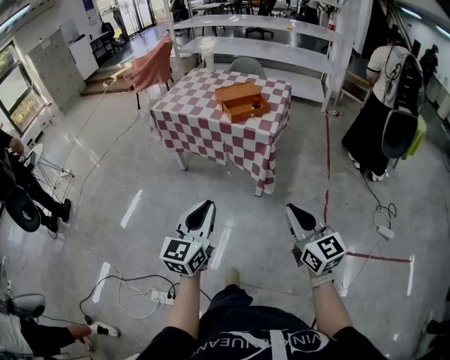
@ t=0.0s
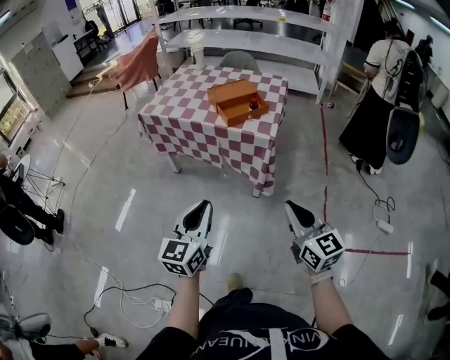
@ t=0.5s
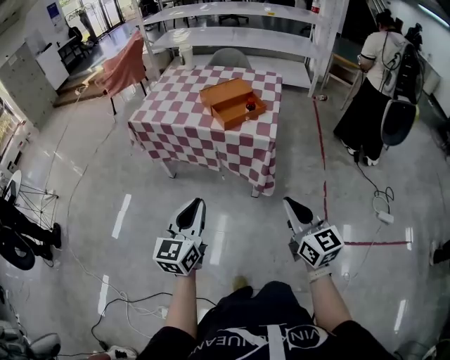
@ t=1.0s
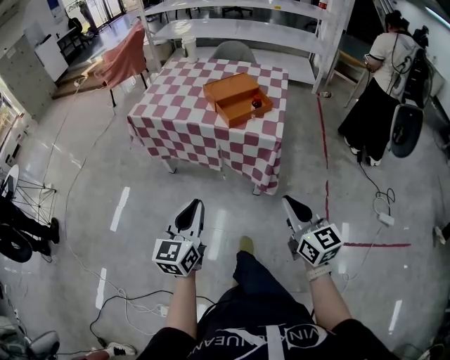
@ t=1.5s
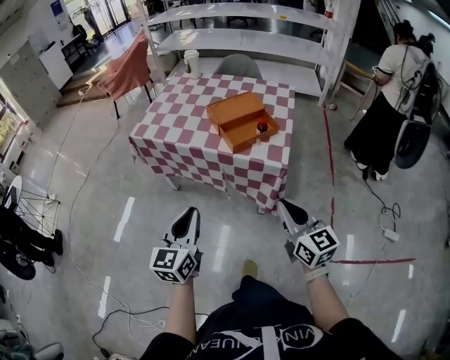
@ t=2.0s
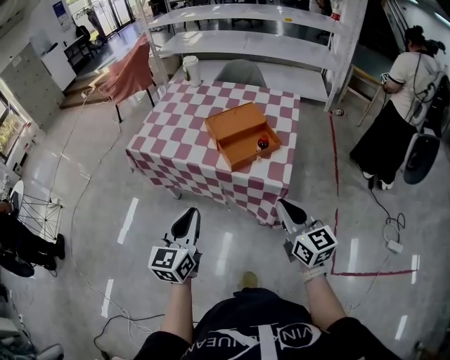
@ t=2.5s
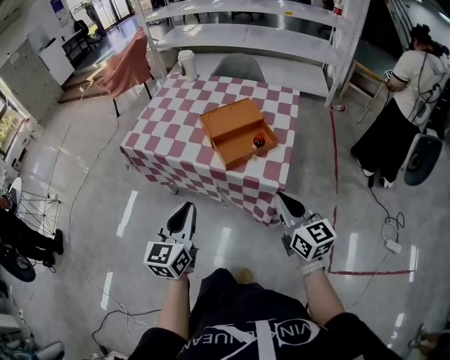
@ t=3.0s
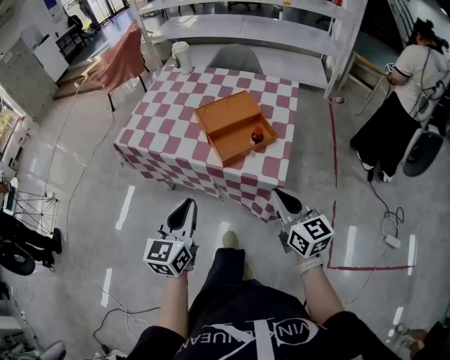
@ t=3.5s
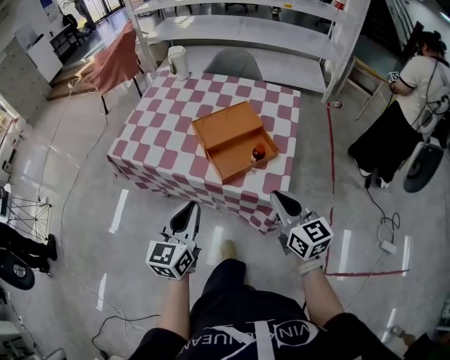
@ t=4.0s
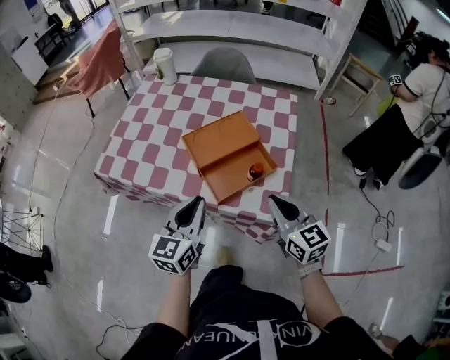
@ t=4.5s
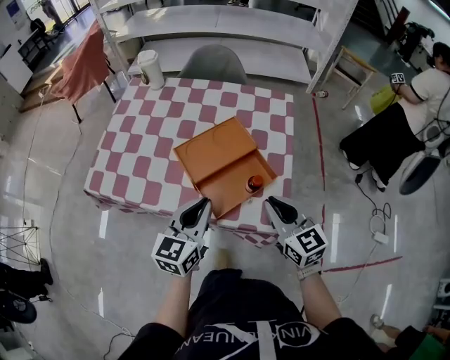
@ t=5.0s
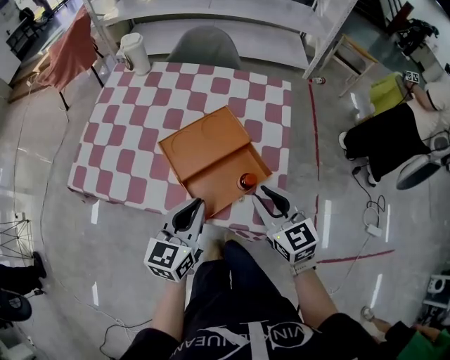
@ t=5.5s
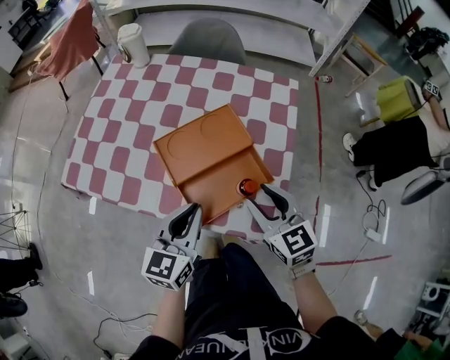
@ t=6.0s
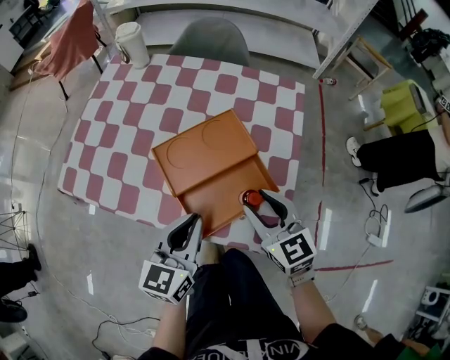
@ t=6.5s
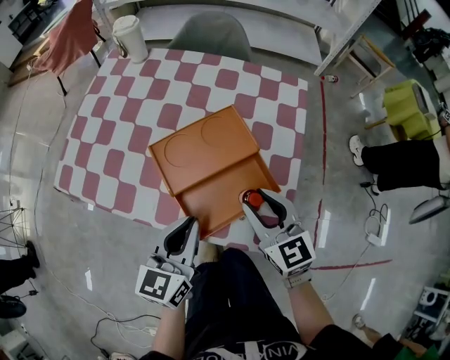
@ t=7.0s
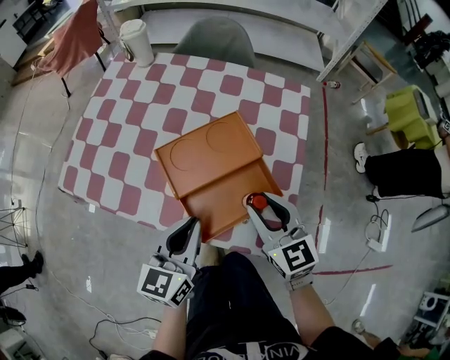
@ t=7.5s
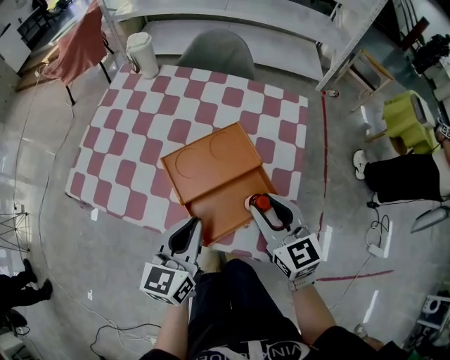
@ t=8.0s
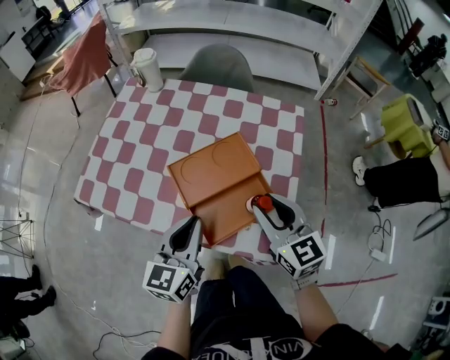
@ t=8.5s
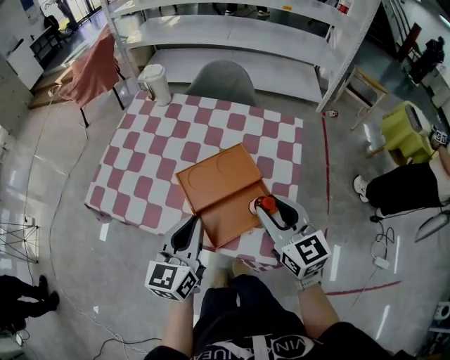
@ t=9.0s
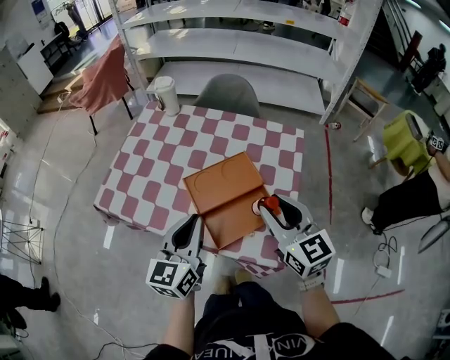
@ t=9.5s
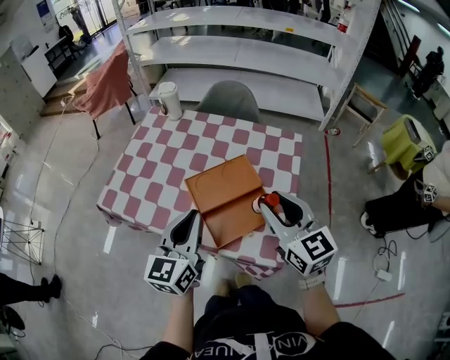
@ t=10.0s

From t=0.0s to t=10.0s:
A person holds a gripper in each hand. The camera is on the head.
From t=0.0s to t=2.0s: Both grippers travel together forward, some 25 cm.
From t=2.0s to t=4.0s: Both grippers move forward, roughly 20 cm.
From t=4.0s to t=6.0s: The left gripper goes roughly 20 cm forward and to the right; the right gripper heads forward and downward, covering about 15 cm, and opens up.
From t=6.0s to t=8.0s: The grippers move only a little.
From t=8.0s to t=10.0s: The two grippers go approximately 10 cm upward.

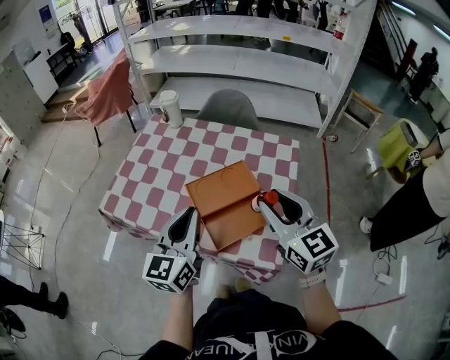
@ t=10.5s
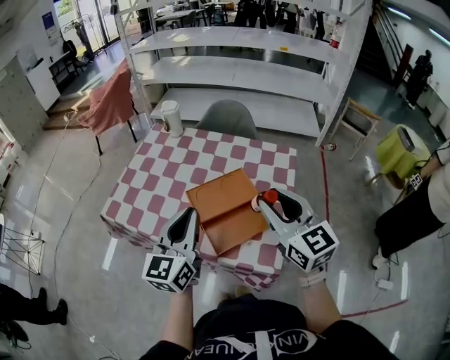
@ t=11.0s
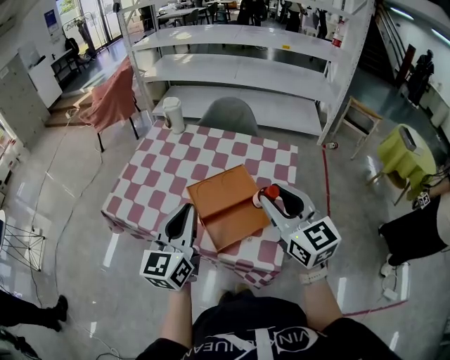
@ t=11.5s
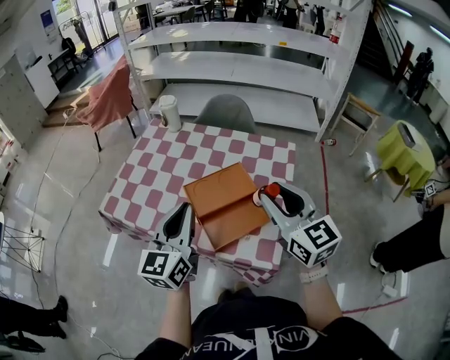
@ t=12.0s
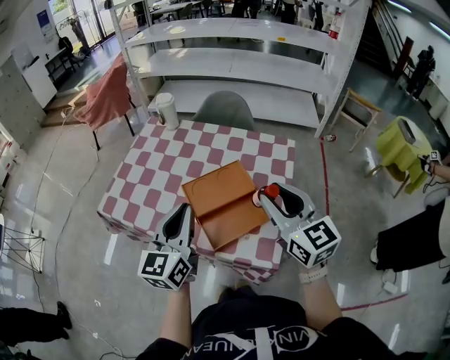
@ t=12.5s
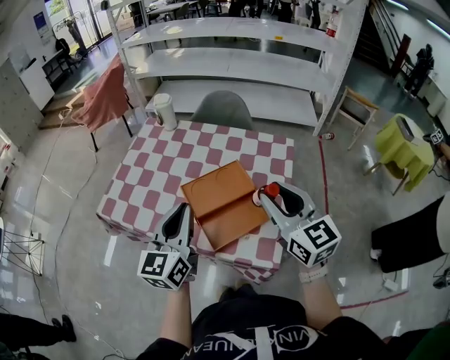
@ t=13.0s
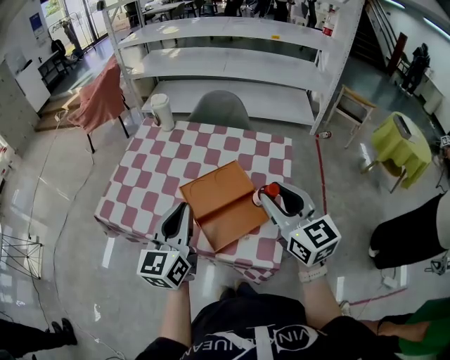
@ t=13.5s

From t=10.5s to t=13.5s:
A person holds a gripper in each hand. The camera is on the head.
From t=10.5s to t=13.5s: There are only small adjustments of the grippers.

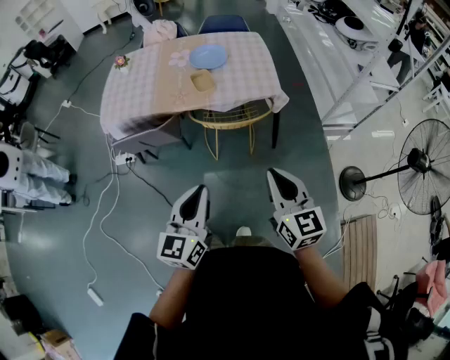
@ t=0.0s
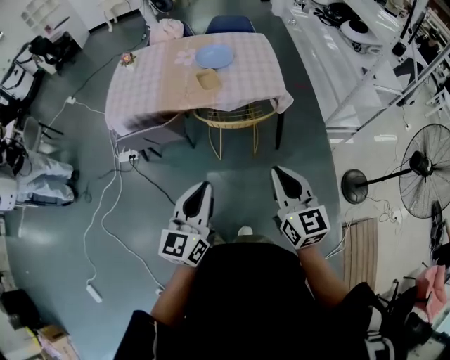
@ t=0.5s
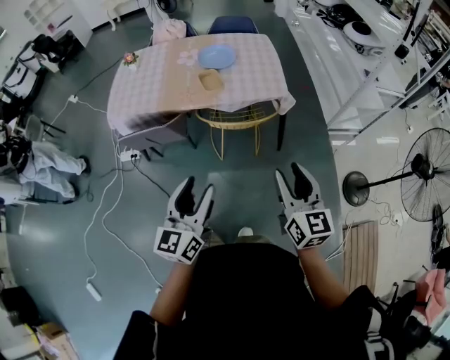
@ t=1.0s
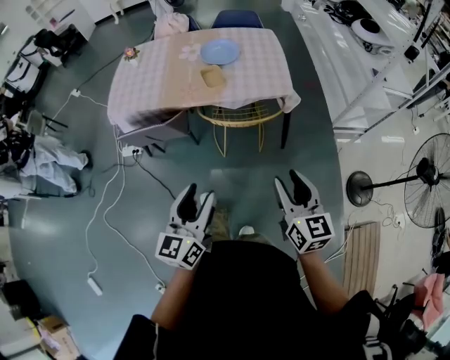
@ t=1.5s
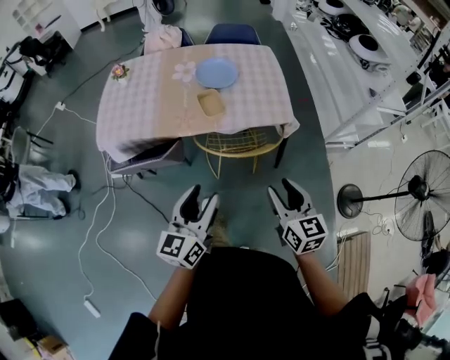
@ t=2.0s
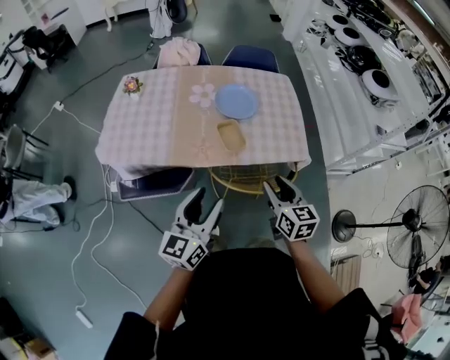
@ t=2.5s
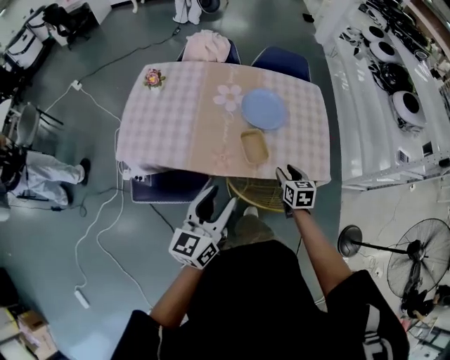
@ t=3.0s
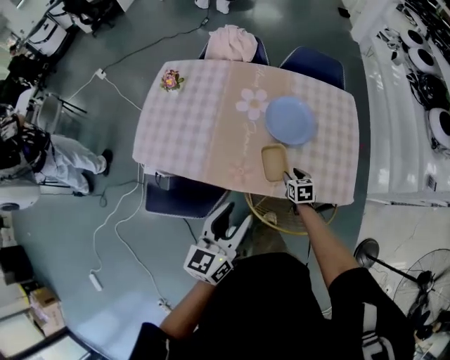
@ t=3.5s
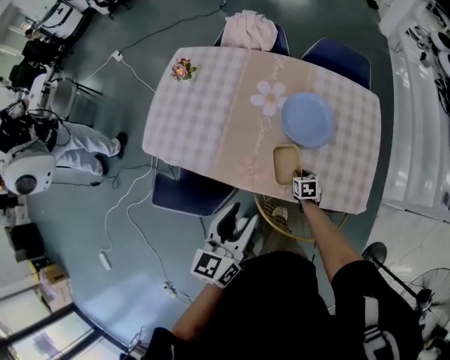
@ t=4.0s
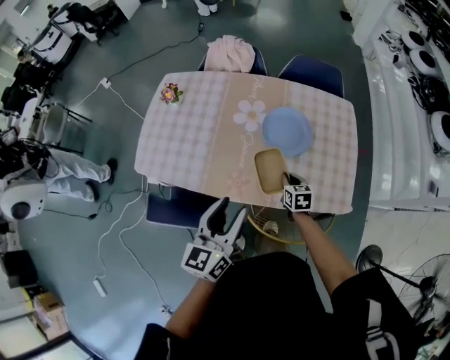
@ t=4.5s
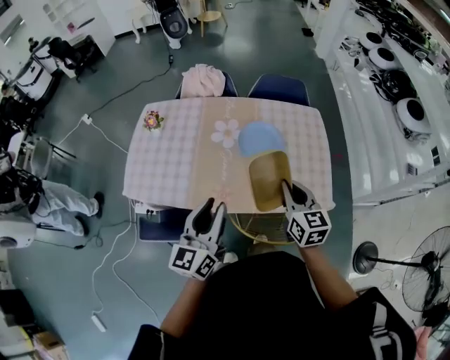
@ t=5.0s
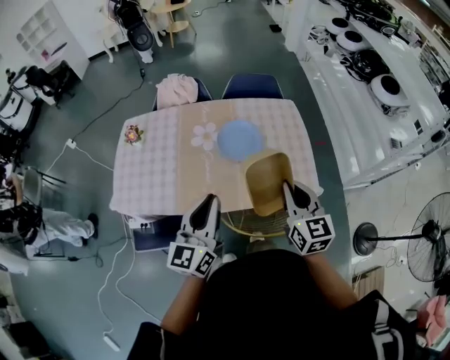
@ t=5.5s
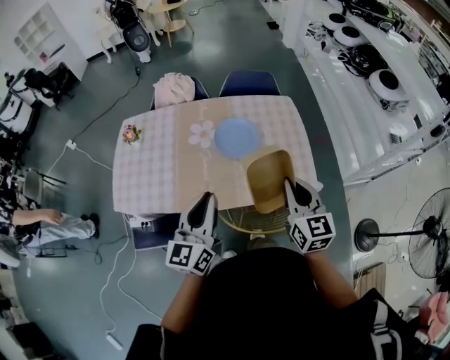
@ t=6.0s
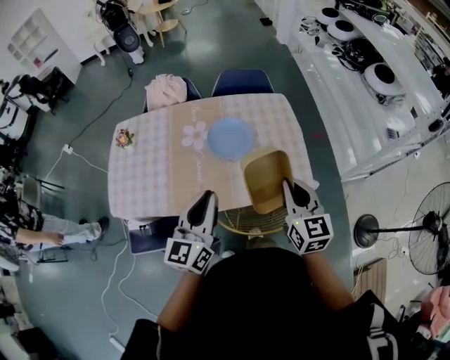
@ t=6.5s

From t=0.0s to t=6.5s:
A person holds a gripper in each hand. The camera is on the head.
From t=0.0s to t=2.0s: The right gripper moves forward and downward, roughly 15 cm, and opens its fingers; the left gripper travels forward by about 15 cm, and opens its fingers.
From t=2.0s to t=4.5s: The left gripper is displaced forward by approximately 35 cm, while the right gripper shifts approximately 50 cm forward and downward, turns by about 30 degrees, and closes its fingers.
From t=4.5s to t=6.5s: The right gripper is displaced upward and backward by roughly 35 cm, and tilts its fingers roughly 30 degrees upward, while the left gripper goes about 10 cm upward and to the right, and closes.

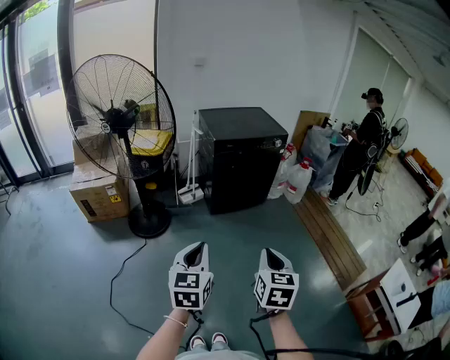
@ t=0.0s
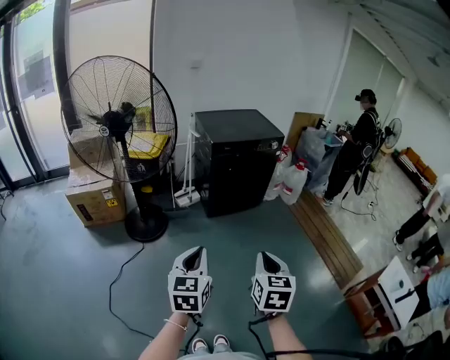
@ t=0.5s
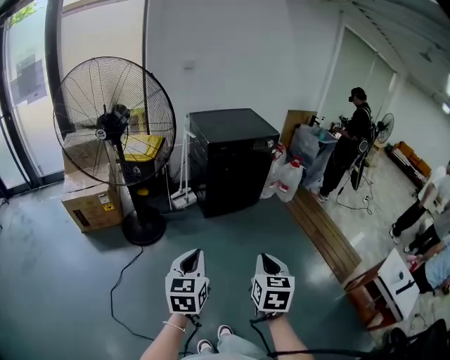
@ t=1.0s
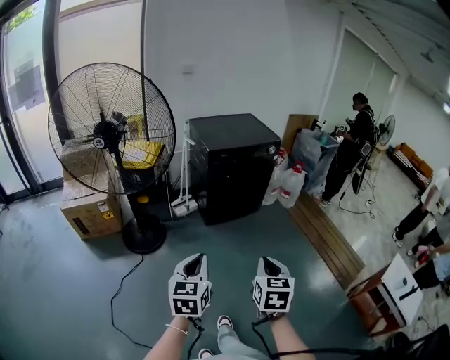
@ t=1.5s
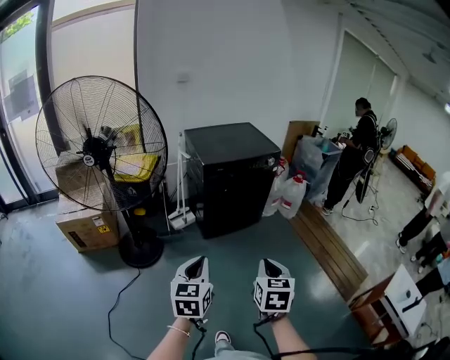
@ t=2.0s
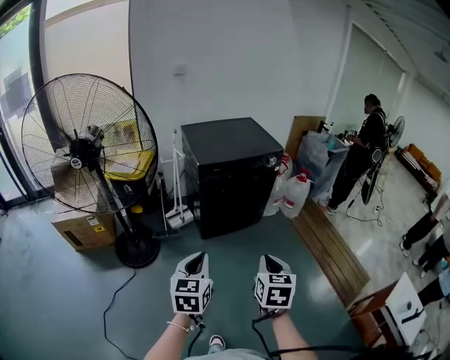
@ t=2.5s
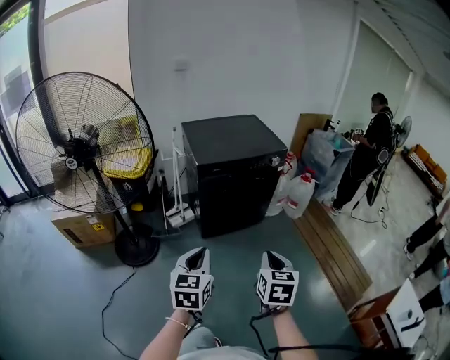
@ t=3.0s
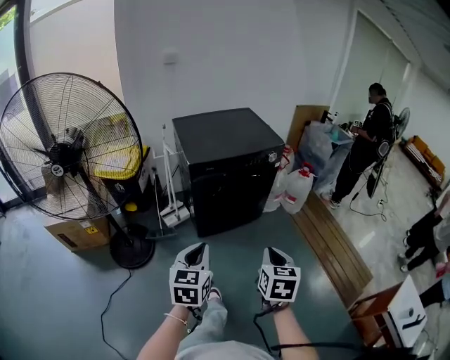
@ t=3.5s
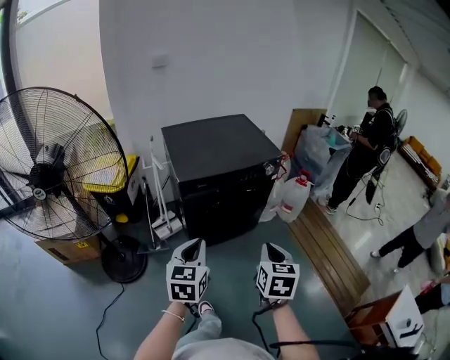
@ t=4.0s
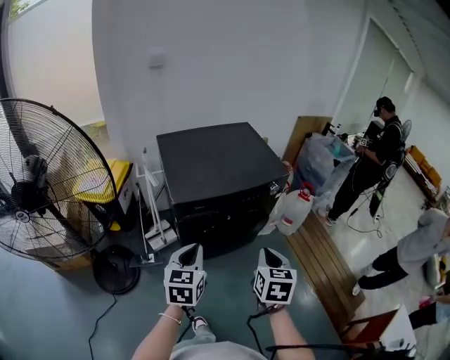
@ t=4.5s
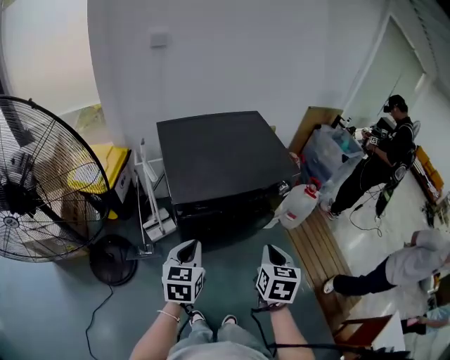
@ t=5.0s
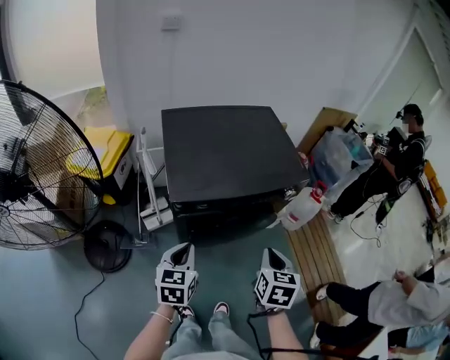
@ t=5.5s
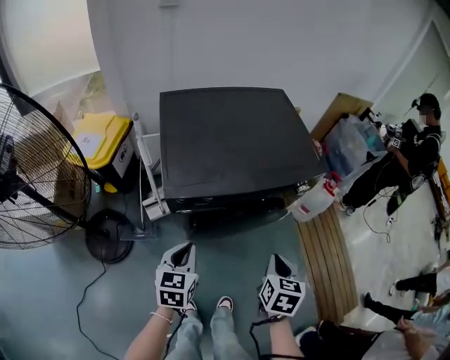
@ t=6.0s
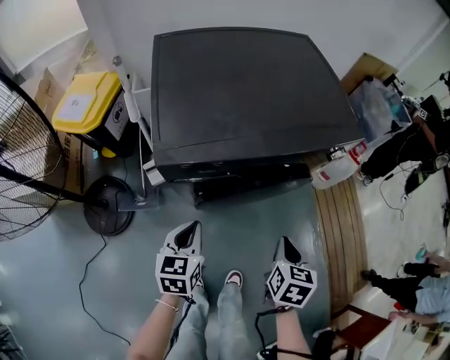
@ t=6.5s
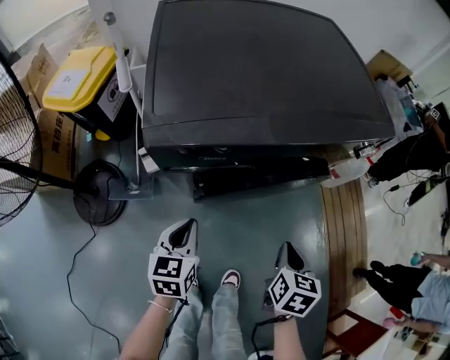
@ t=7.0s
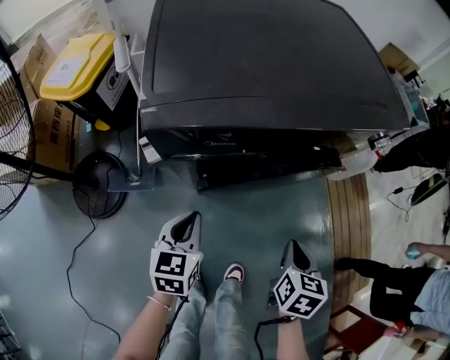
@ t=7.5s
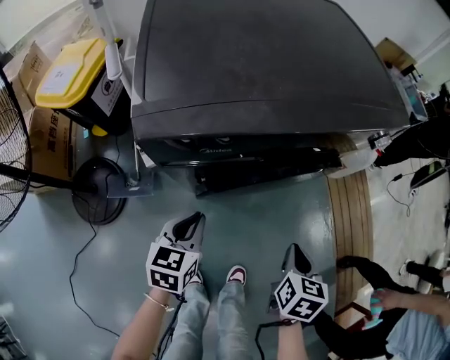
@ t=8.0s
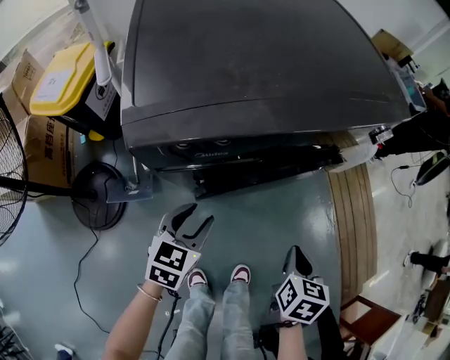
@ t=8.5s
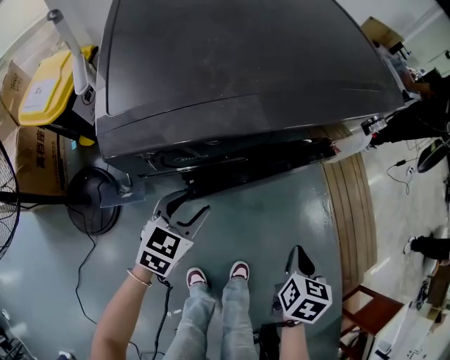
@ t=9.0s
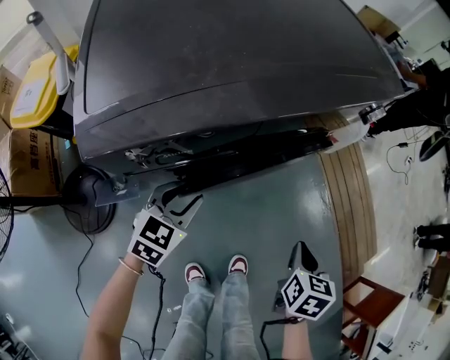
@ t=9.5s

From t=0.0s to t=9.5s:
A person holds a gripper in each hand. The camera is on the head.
From t=0.0s to t=2.0s: The two grippers go some 15 cm forward.
From t=2.0s to t=4.0s: The two grippers go roughly 35 cm forward.
From t=4.0s to t=5.5s: The right gripper travels forward by roughly 20 cm, while the left gripper moves forward and downward, roughly 20 cm.
From t=5.5s to t=7.5s: Both grippers move downward, approximately 30 cm.
From t=7.5s to t=9.5s: The right gripper shifts roughly 5 cm to the right, while the left gripper moves forward, about 10 cm, swivels about 40 degrees, and opens its fingers.
